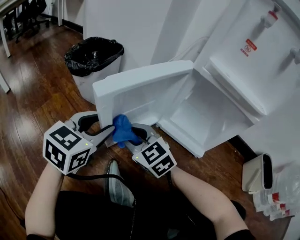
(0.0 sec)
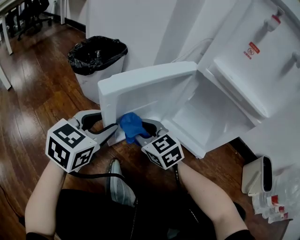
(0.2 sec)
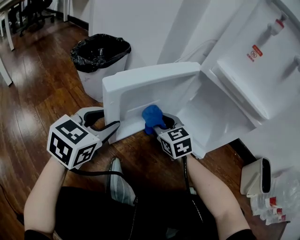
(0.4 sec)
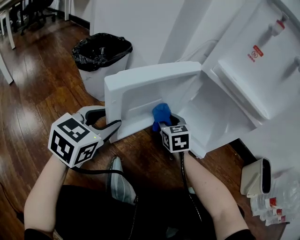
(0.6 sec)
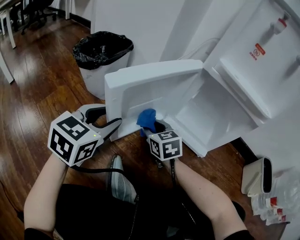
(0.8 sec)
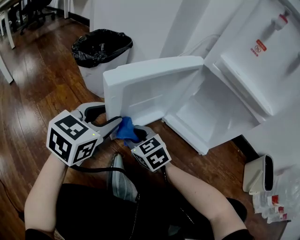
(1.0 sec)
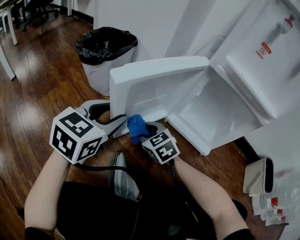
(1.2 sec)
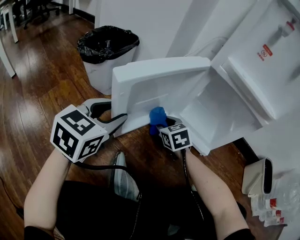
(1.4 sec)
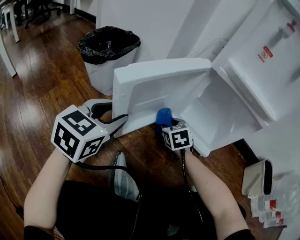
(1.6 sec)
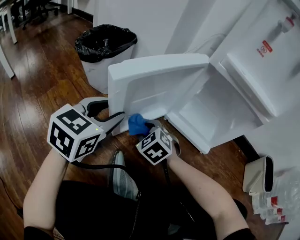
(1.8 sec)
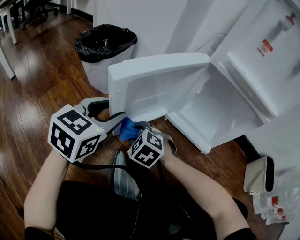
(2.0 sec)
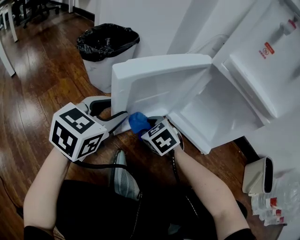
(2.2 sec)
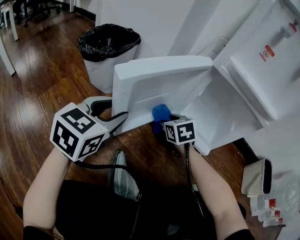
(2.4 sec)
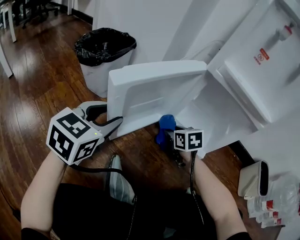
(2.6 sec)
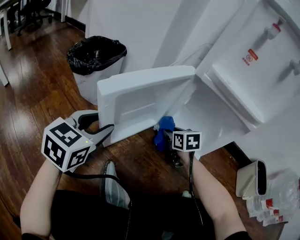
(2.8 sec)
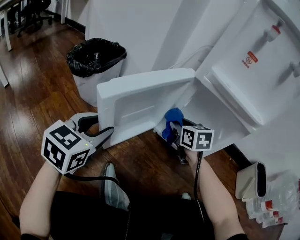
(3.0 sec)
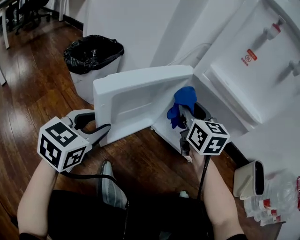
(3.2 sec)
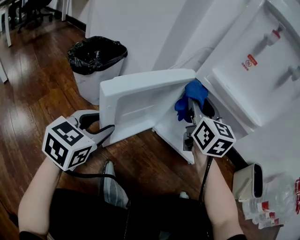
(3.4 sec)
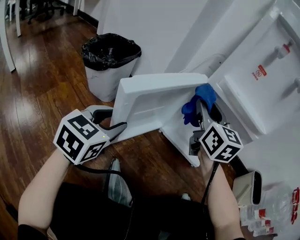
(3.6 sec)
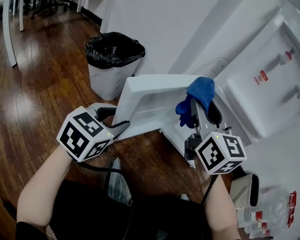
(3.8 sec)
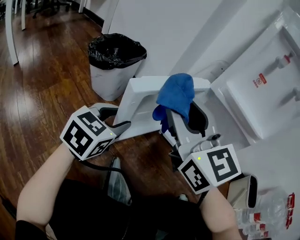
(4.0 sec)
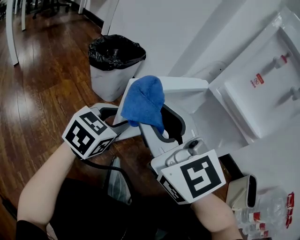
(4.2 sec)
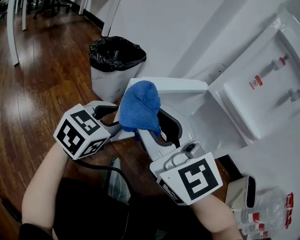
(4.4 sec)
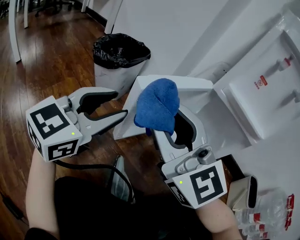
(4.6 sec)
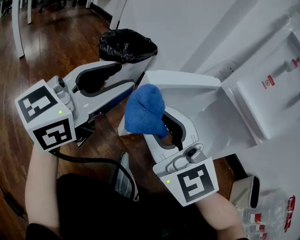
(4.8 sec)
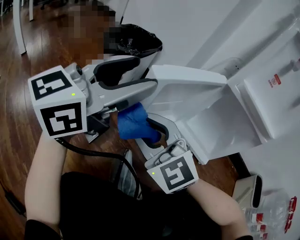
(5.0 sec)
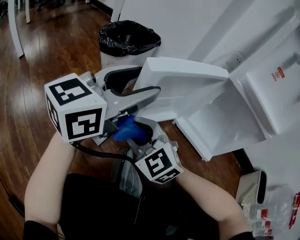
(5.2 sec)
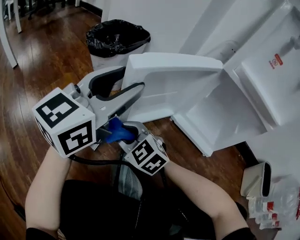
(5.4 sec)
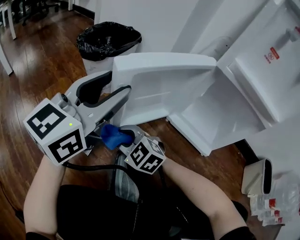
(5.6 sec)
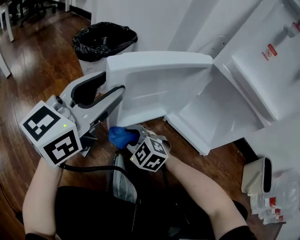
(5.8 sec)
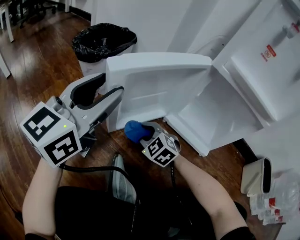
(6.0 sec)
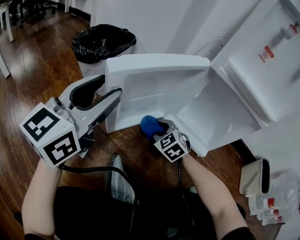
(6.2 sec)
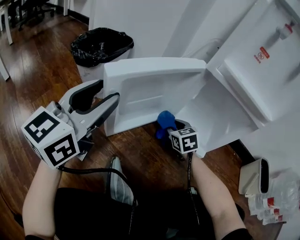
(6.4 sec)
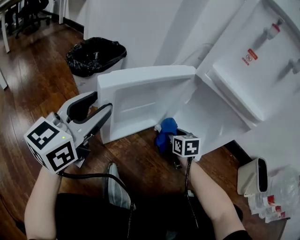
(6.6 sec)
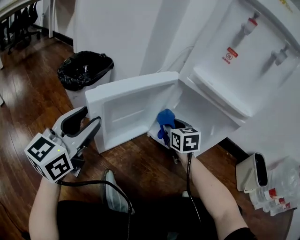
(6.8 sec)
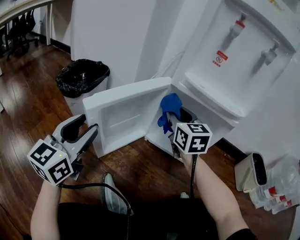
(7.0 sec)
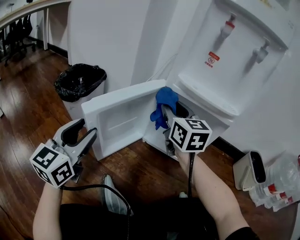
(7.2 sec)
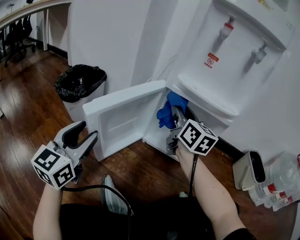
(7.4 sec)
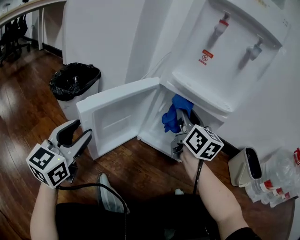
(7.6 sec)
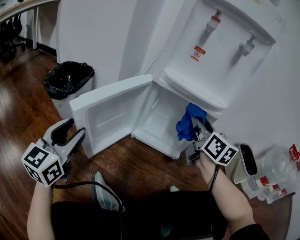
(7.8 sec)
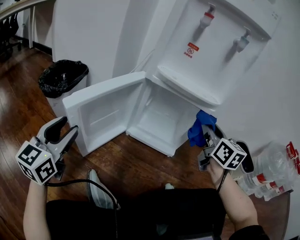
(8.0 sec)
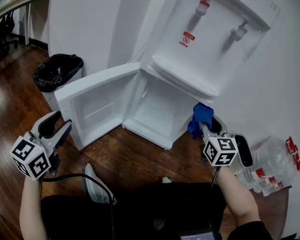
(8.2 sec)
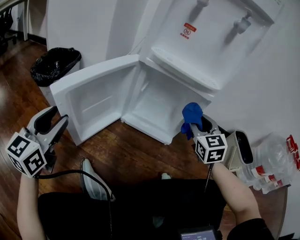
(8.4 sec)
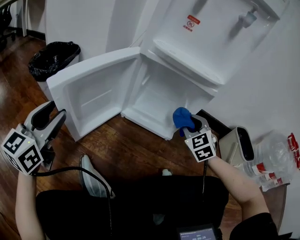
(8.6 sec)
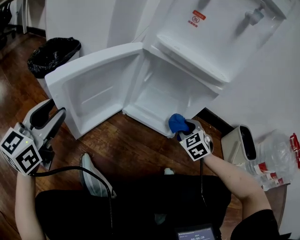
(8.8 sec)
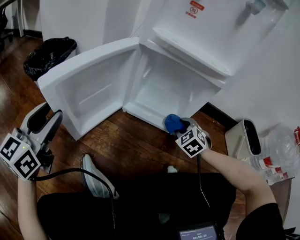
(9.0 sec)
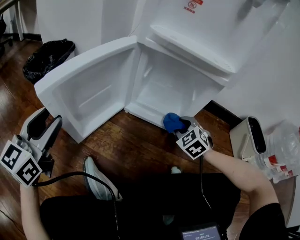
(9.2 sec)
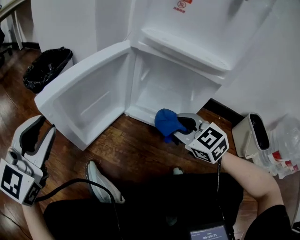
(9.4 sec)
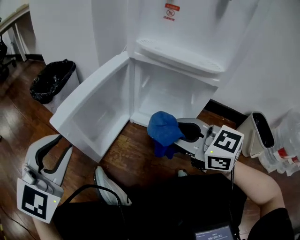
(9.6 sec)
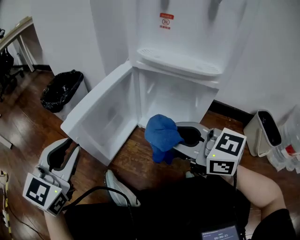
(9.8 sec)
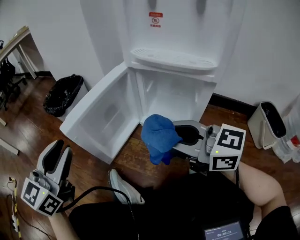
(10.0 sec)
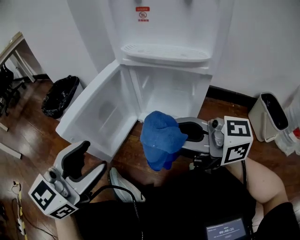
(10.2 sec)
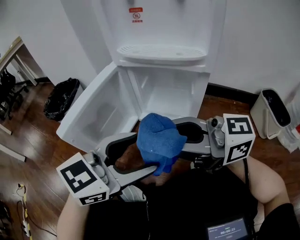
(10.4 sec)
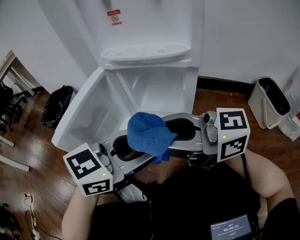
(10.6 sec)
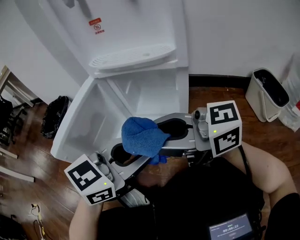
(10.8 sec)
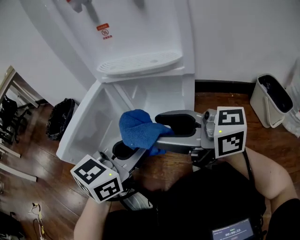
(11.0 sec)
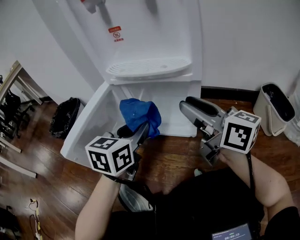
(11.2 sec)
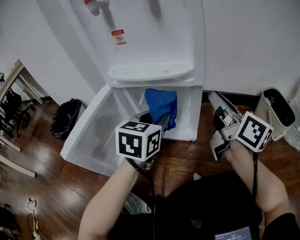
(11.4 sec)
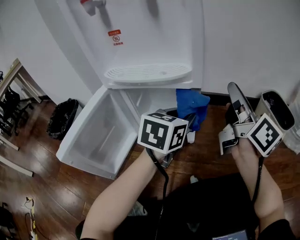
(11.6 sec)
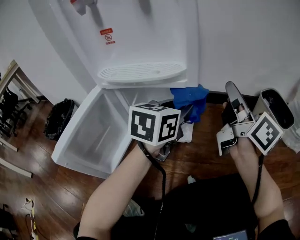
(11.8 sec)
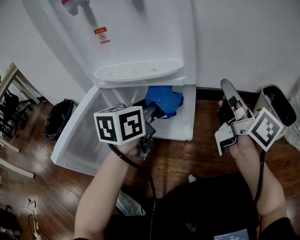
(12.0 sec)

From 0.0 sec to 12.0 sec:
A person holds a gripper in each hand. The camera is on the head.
From 0.0 sec to 1.6 sec: The right gripper goes left and right, about 15 cm each way, reversing 2 times, and turns by approximately 40 degrees.
From 1.6 sec to 3.0 sec: The right gripper travels upward by some 10 cm, goes to the left and returns, approximately 15 cm each way, and changes its angle by some 20 degrees.
From 3.0 sec to 4.4 sec: The right gripper goes approximately 40 cm upward, to the left and backward, and tilts its fingers roughly 30 degrees upward.
From 4.4 sec to 6.0 sec: The left gripper moves upward, approximately 10 cm, and changes its angle by approximately 30 degrees. Meanwhile the right gripper is displaced downward by about 35 cm, and tips its fingers downward by some 40 degrees.
From 6.0 sec to 7.6 sec: The right gripper heads upward and to the right, covering roughly 40 cm, and tips its fingers upward by about 40 degrees.
From 7.6 sec to 9.0 sec: The right gripper shifts roughly 30 cm downward and to the right, and tips its fingers downward by approximately 50 degrees.
From 9.0 sec to 10.4 sec: The right gripper moves upward, approximately 30 cm, and points its fingers roughly 60 degrees further upward, while the left gripper shifts by about 30 cm, changes its angle by roughly 40 degrees, and opens up.
From 10.4 sec to 12.0 sec: The left gripper changes place by some 25 cm, rotates about 30 degrees, and closes up. The right gripper shifts by about 30 cm, swivels about 70 degrees, and closes.

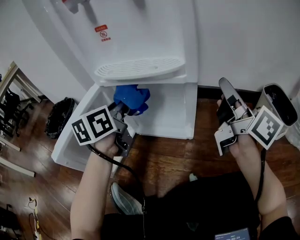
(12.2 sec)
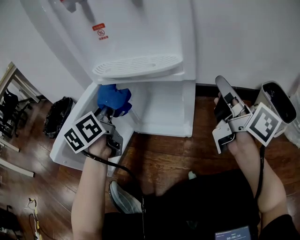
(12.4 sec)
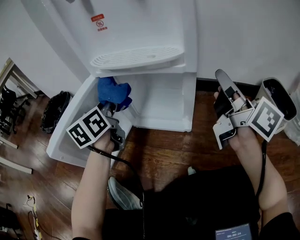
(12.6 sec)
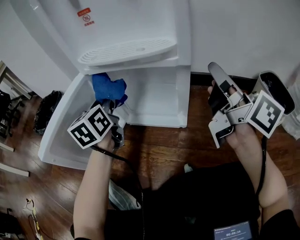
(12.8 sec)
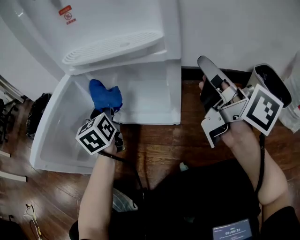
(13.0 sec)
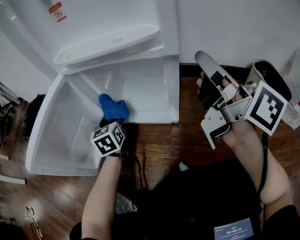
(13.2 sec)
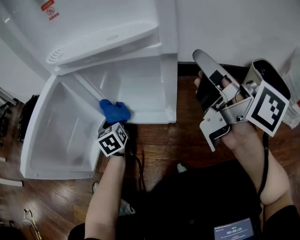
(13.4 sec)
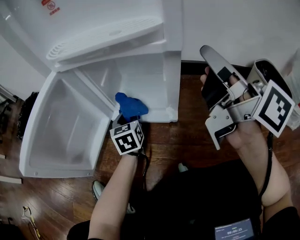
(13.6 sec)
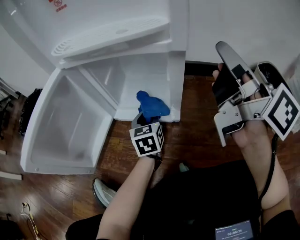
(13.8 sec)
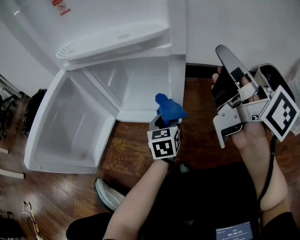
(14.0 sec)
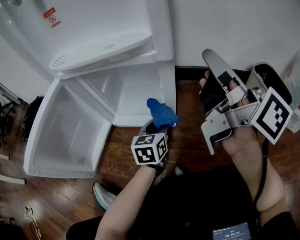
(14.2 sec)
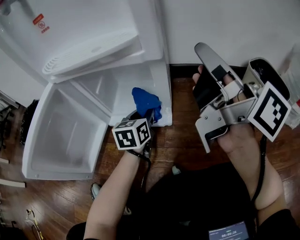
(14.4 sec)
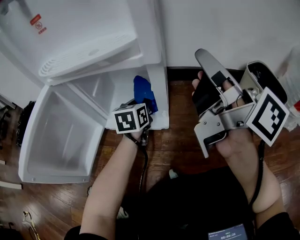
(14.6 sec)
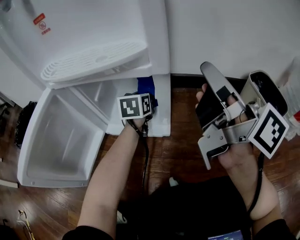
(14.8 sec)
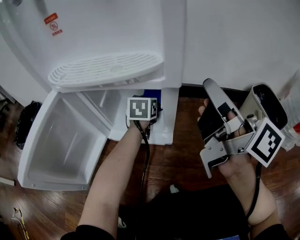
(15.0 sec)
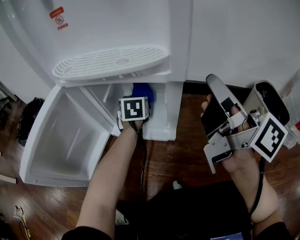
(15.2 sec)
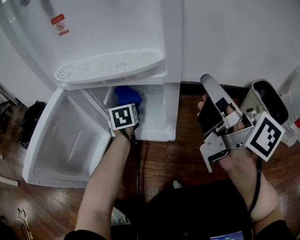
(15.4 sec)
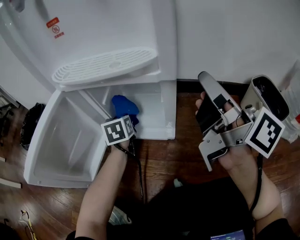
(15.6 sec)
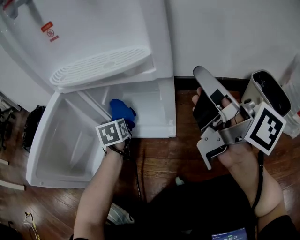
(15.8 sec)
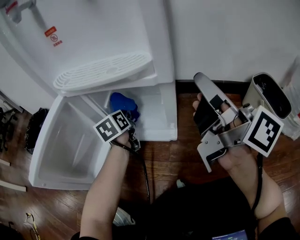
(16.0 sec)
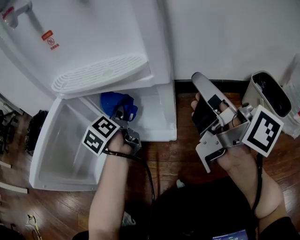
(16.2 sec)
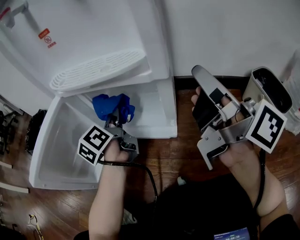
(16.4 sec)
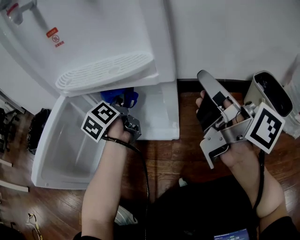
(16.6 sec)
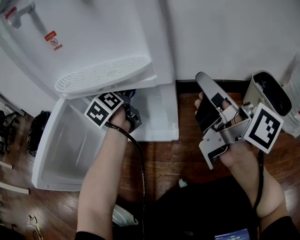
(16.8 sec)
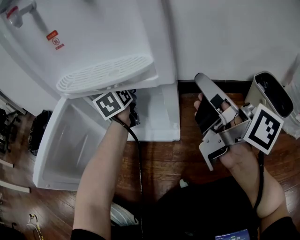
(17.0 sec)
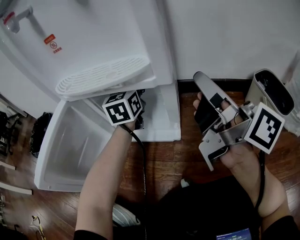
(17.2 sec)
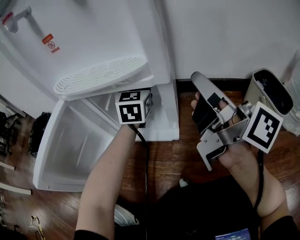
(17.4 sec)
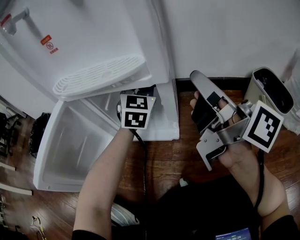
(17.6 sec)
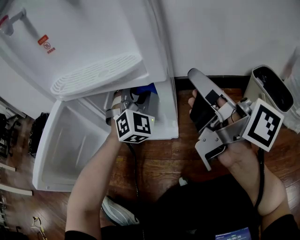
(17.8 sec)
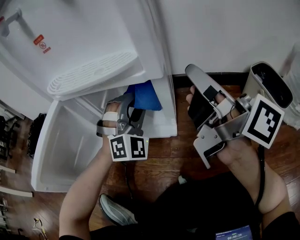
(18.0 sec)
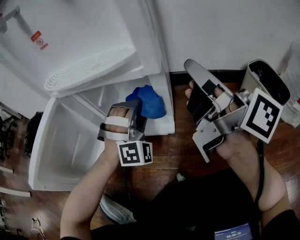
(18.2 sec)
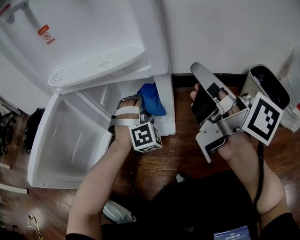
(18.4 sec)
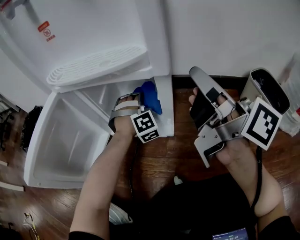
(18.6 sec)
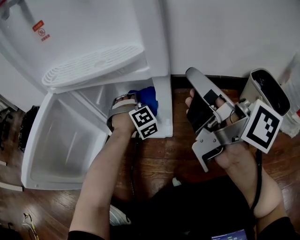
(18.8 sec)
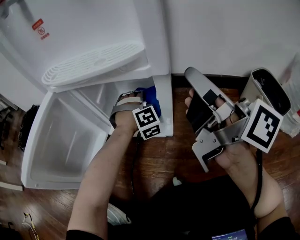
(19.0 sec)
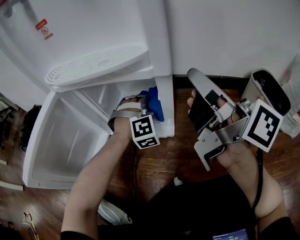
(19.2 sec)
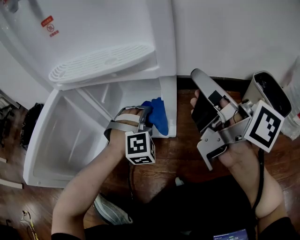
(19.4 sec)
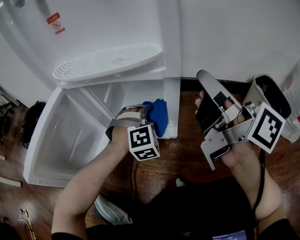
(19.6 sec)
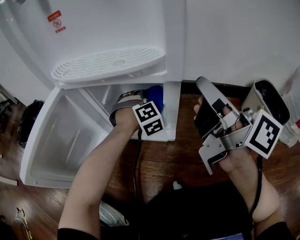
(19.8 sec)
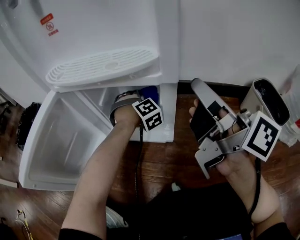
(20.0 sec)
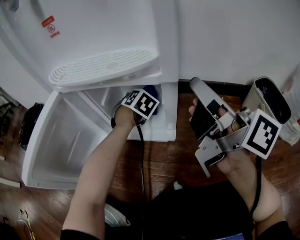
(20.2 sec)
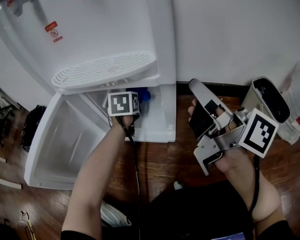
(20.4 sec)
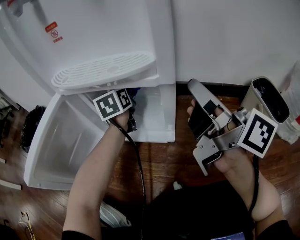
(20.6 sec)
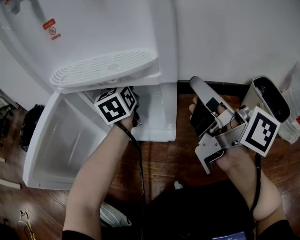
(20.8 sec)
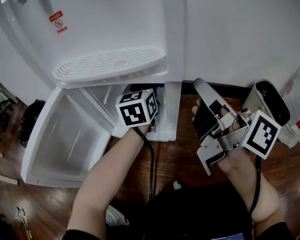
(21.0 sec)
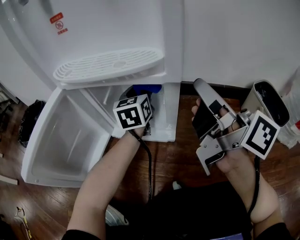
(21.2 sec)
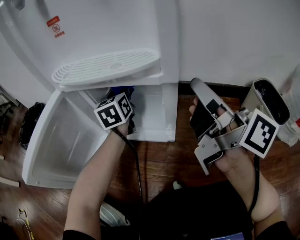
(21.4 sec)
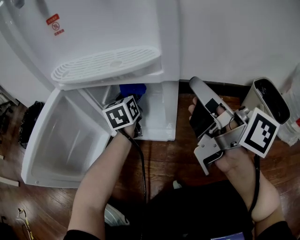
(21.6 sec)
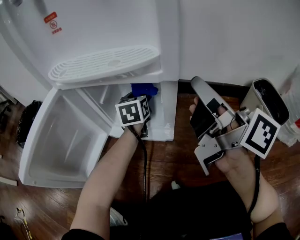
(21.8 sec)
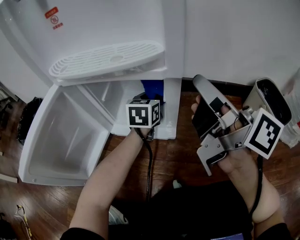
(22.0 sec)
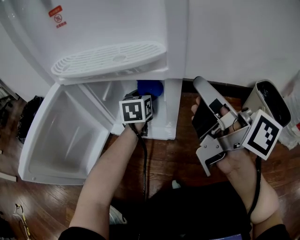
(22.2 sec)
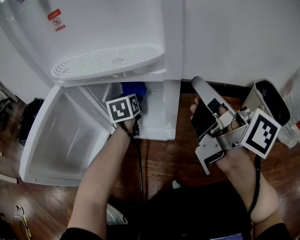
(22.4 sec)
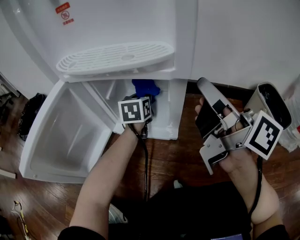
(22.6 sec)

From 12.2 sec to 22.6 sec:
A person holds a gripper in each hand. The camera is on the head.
From 12.2 sec to 13.6 sec: The left gripper is displaced downward by approximately 25 cm, and swivels about 30 degrees.
From 13.6 sec to 15.2 sec: The left gripper moves forward and to the right, about 15 cm.
From 15.2 sec to 16.6 sec: The left gripper heads upward and to the left, covering roughly 10 cm, and rotates around the line of its fingers by approximately 40 degrees, counterclockwise from behind.
From 16.6 sec to 18.2 sec: The left gripper travels to the right and backward by roughly 15 cm, and rotates around the line of its fingers by roughly 130 degrees, clockwise from behind.
From 18.2 sec to 19.6 sec: The left gripper goes approximately 5 cm downward, travels forward and back again, about 10 cm each way, and rotates some 30 degrees.
From 19.6 sec to 21.2 sec: The left gripper is displaced upward and forward by about 15 cm, and rolls counterclockwise, seen from behind, by approximately 90 degrees.
From 21.2 sec to 22.6 sec: The left gripper swings left and right, about 10 cm each way, with 3 reversals.

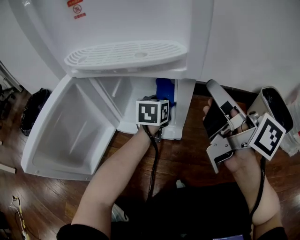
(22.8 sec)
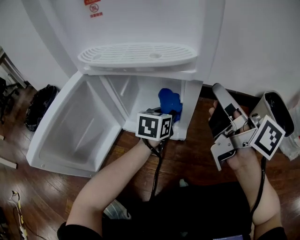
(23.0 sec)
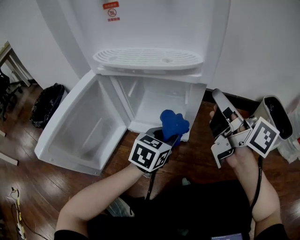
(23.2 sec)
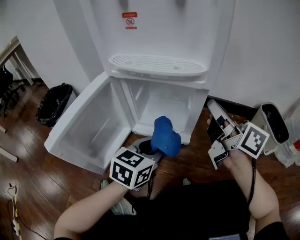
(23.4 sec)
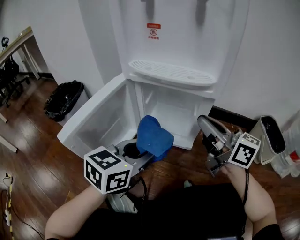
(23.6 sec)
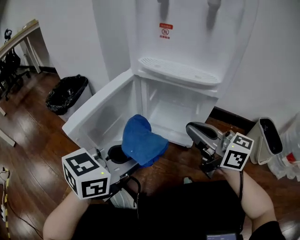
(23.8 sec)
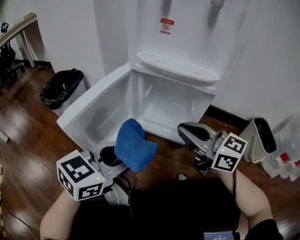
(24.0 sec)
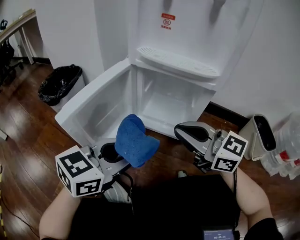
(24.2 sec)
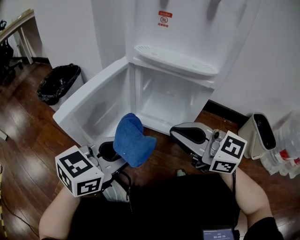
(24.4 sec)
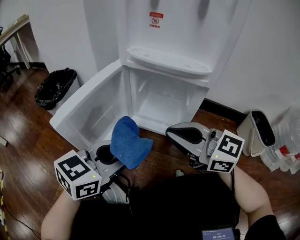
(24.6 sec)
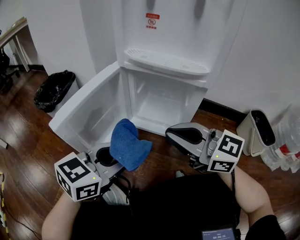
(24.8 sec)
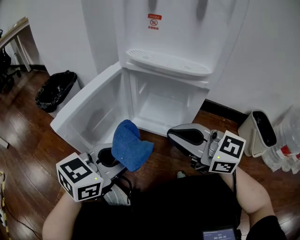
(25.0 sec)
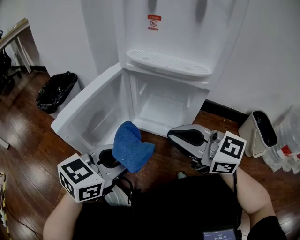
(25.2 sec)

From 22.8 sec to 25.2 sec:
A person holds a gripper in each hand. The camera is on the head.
From 22.8 sec to 24.0 sec: The right gripper shifts approximately 20 cm to the left and backward, and changes its angle by some 50 degrees. Meanwhile the left gripper heads backward, upward and to the left, covering about 40 cm.
From 24.0 sec to 25.2 sec: The grippers make only small movements.
